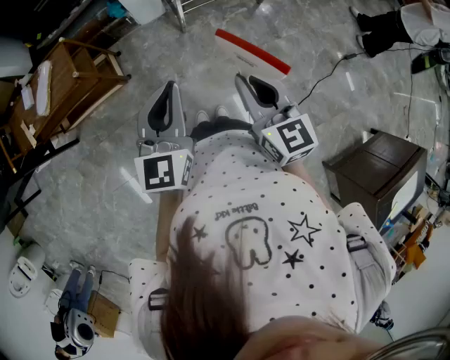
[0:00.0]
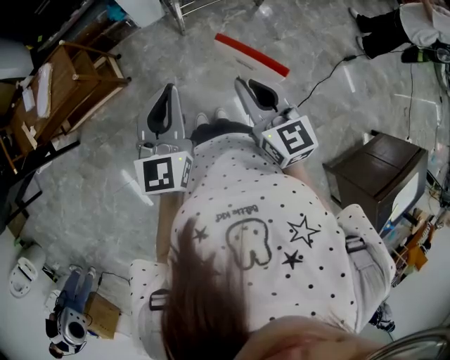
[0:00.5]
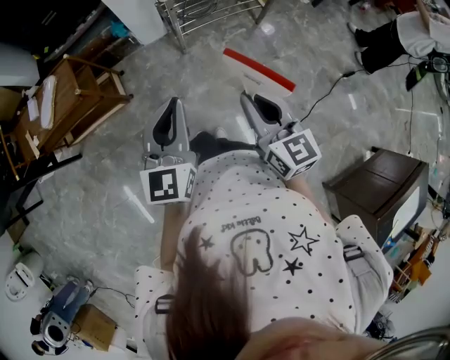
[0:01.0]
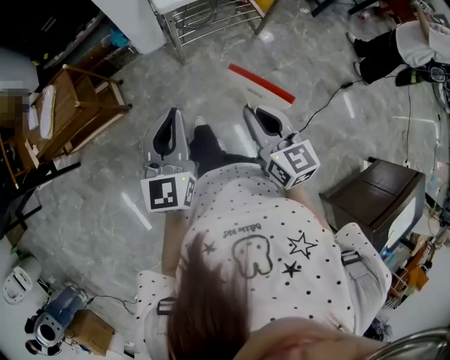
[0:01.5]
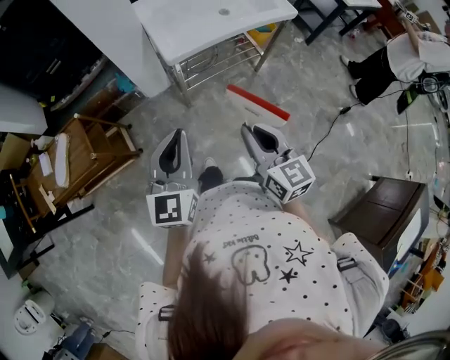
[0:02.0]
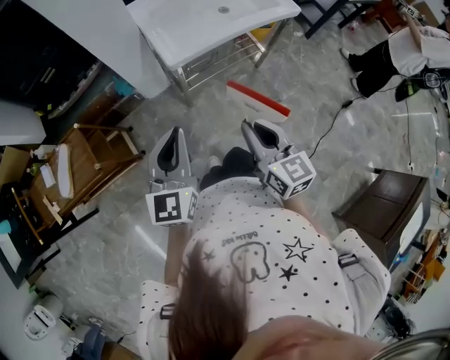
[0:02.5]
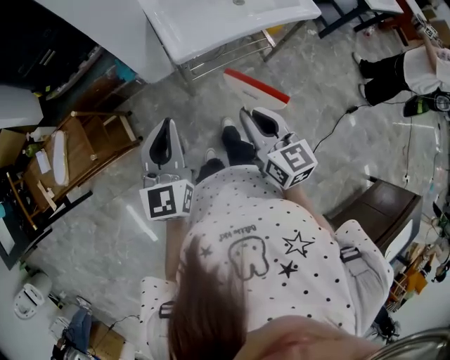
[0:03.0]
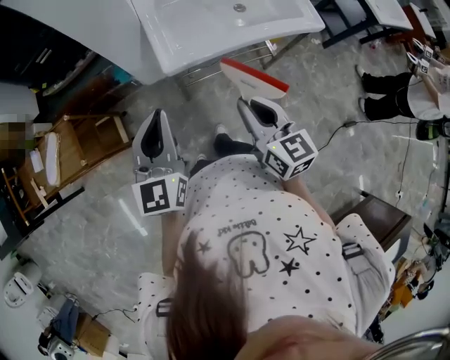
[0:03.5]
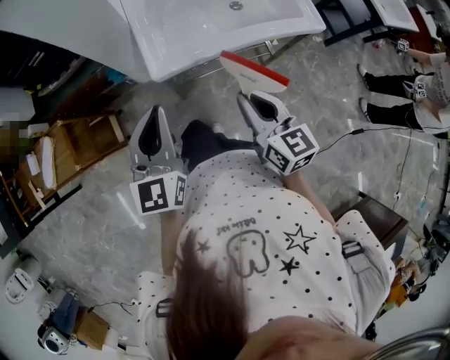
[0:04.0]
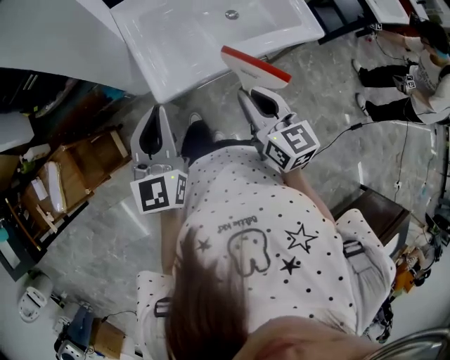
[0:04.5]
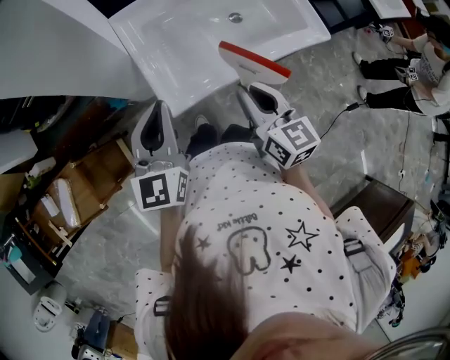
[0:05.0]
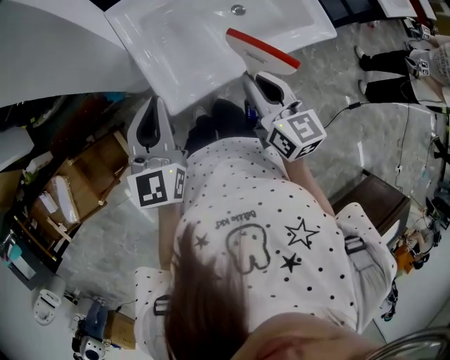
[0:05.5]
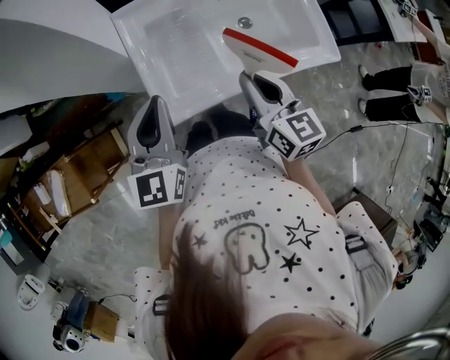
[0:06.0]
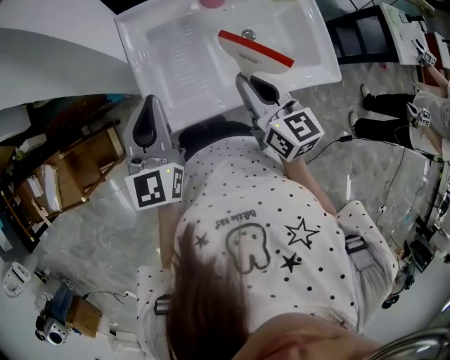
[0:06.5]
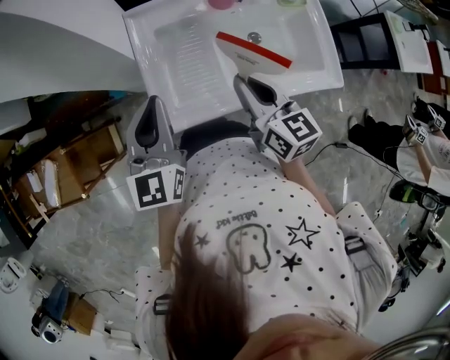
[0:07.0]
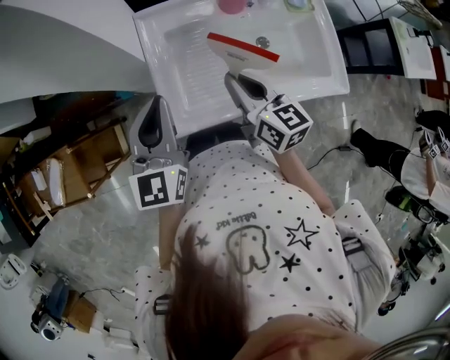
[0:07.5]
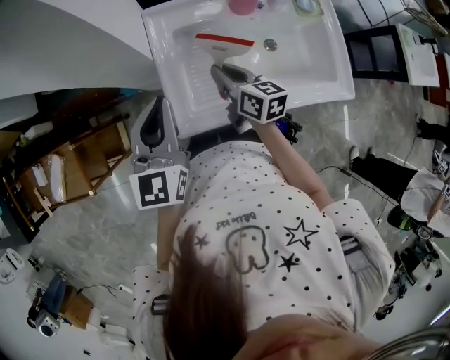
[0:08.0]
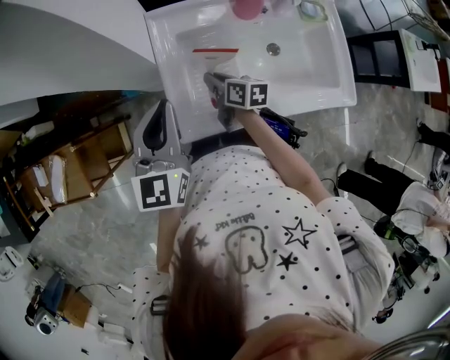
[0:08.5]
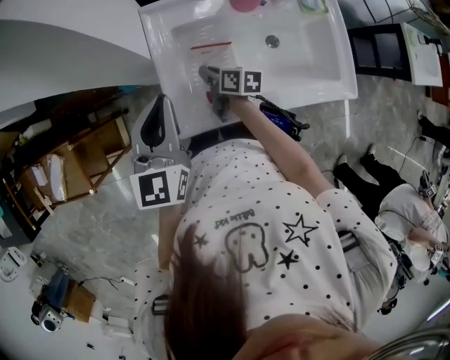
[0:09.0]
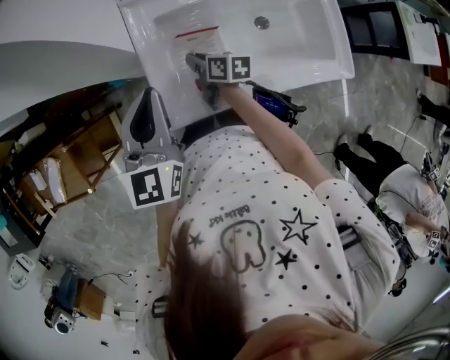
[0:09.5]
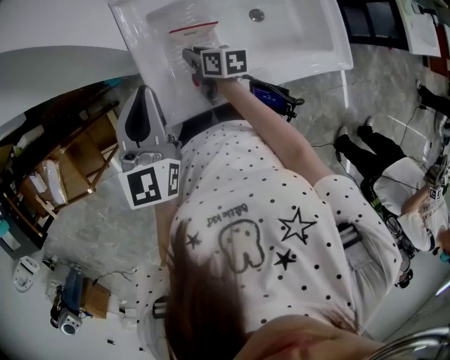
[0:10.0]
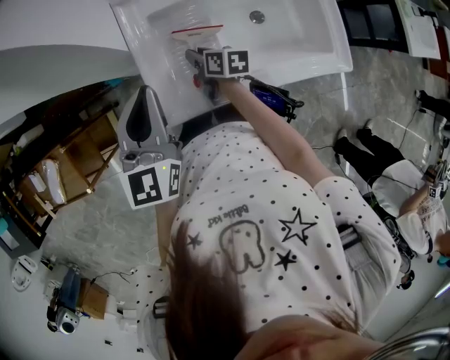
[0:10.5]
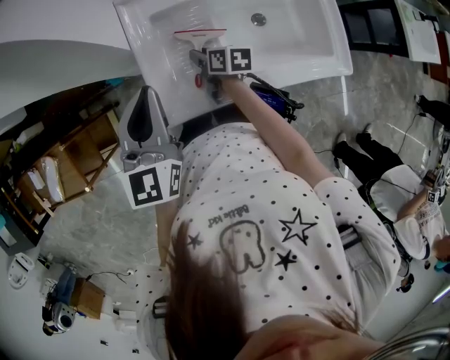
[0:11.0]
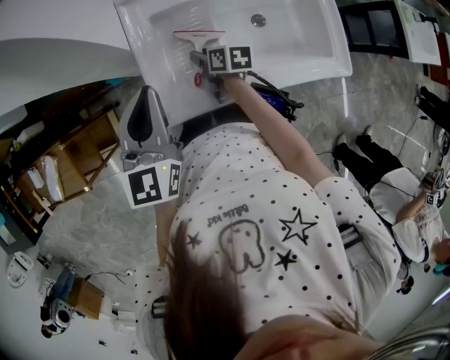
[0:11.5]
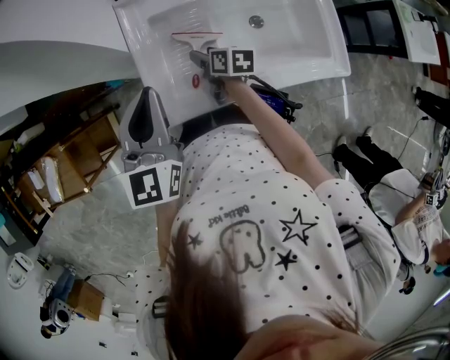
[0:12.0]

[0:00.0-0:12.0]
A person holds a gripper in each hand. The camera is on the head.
0:00.0 to 0:02.0: The grippers both shift forward by approximately 15 cm.
0:02.0 to 0:04.0: Both grippers move forward, roughly 25 cm.
0:04.0 to 0:06.0: The grippers both shift forward by about 20 cm.
0:06.0 to 0:08.0: The left gripper changes place by some 5 cm. The right gripper shifts about 20 cm forward, downward and to the left, and swivels about 20 degrees.
0:08.0 to 0:10.0: The right gripper goes some 15 cm downward, and rotates approximately 20 degrees.
0:10.0 to 0:12.0: The right gripper opens its fingers.

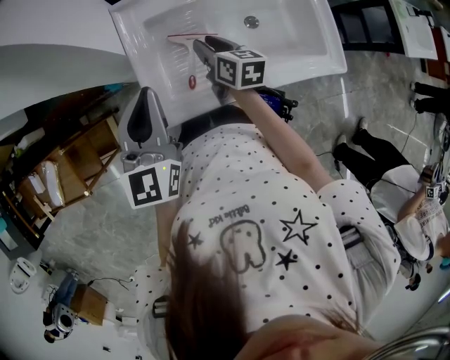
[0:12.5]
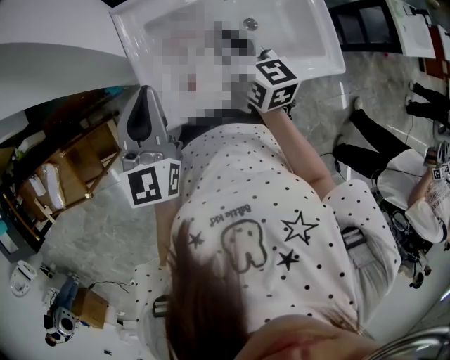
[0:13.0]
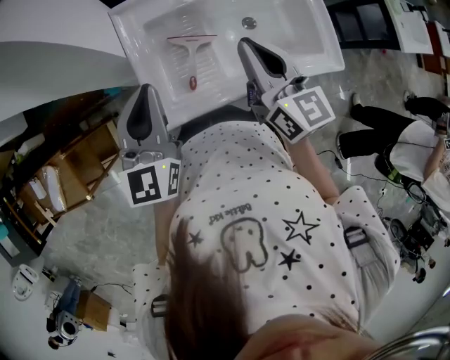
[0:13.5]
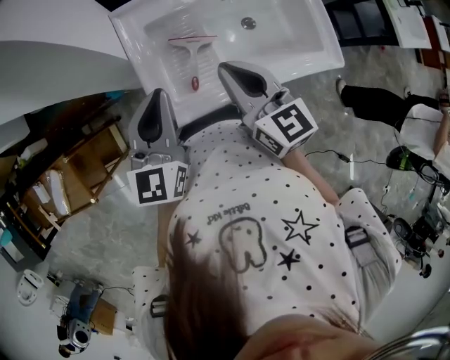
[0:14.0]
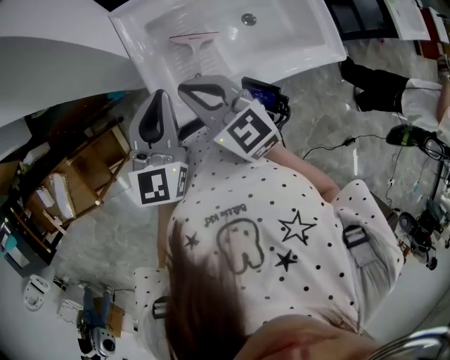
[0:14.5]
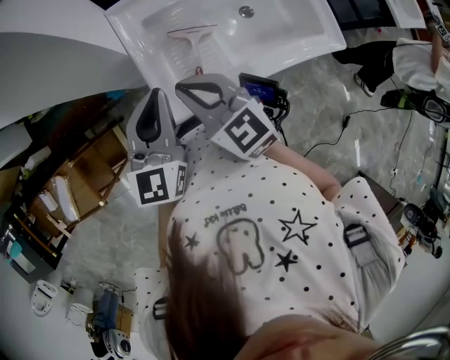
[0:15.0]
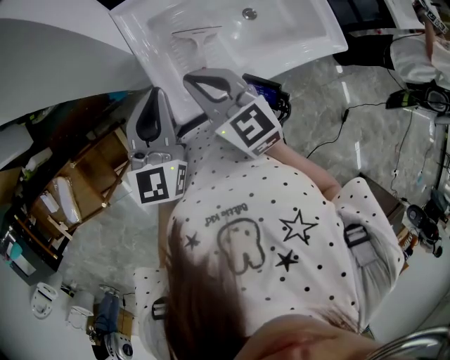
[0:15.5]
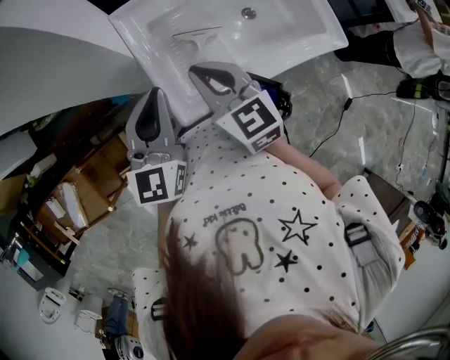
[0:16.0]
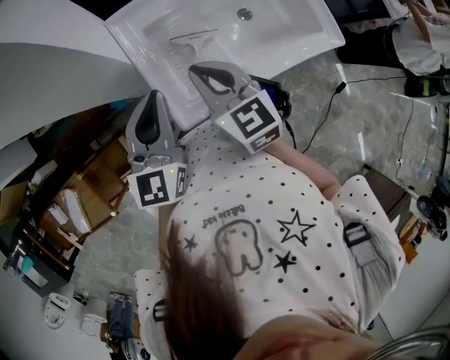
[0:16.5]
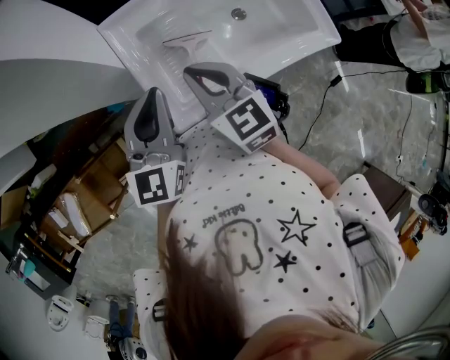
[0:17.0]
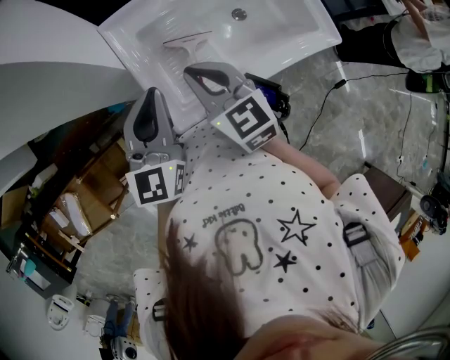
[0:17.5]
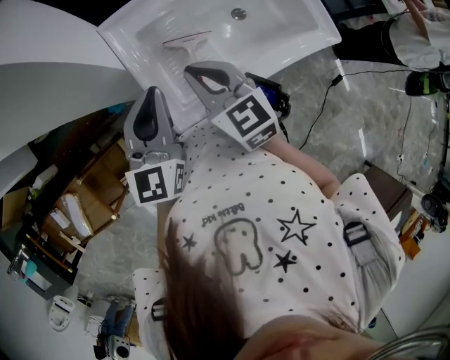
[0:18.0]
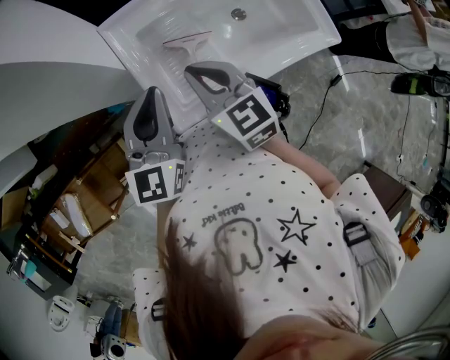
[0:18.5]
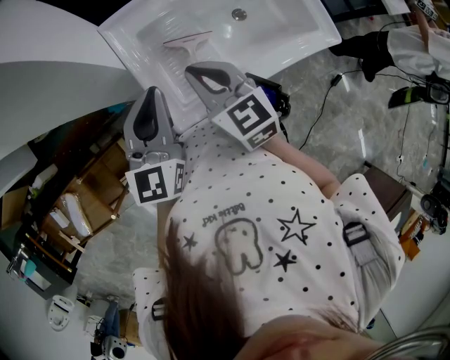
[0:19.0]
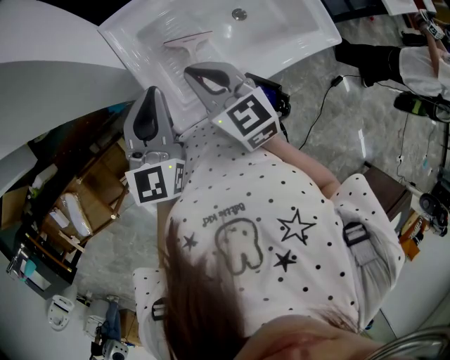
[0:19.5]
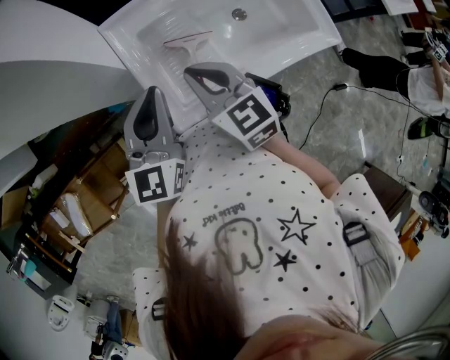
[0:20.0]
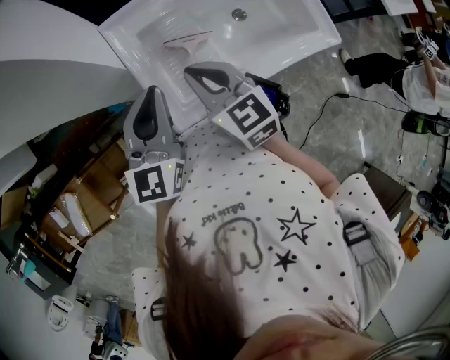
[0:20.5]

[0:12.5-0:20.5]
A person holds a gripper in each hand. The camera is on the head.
0:12.5 to 0:14.5: The right gripper goes some 20 cm upward, to the left and backward, turns by approximately 40 degrees, and closes up.
0:16.5 to 0:18.5: The grippers stay close to where they were, moving slightly.
0:18.5 to 0:20.5: Both grippers stay about where they are.

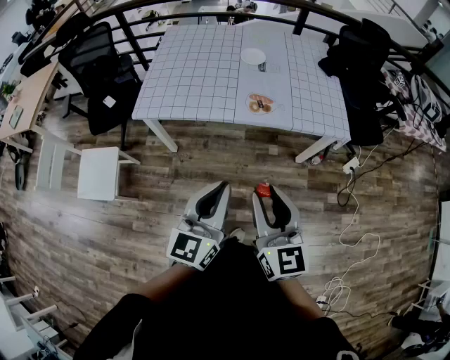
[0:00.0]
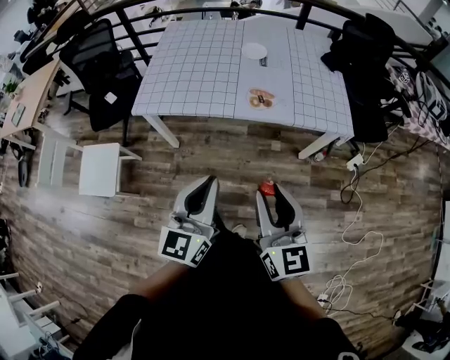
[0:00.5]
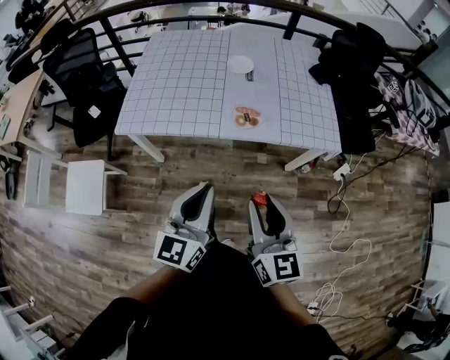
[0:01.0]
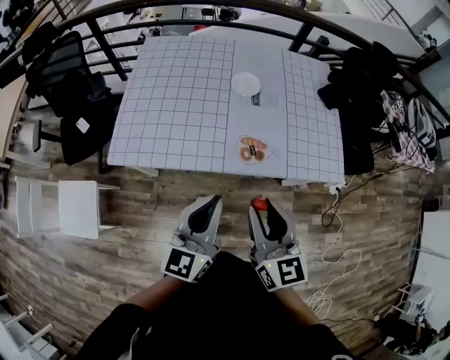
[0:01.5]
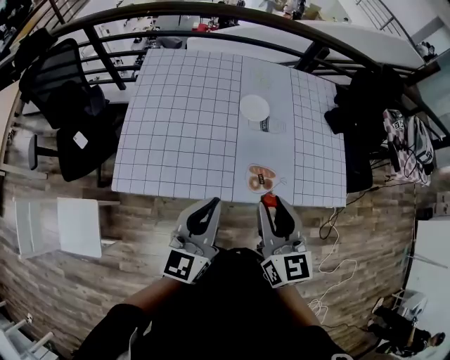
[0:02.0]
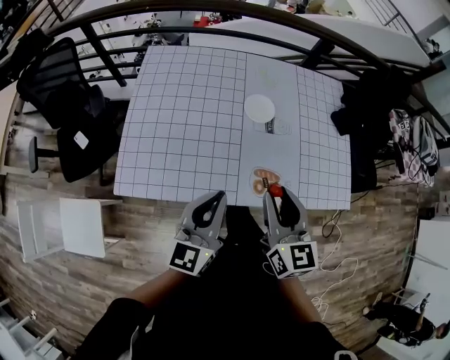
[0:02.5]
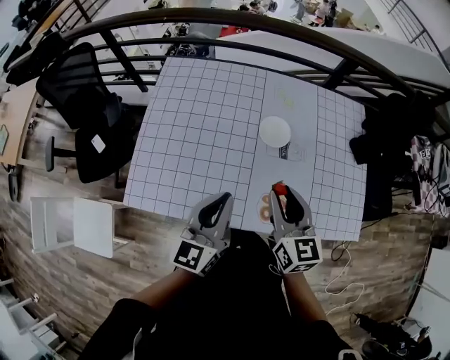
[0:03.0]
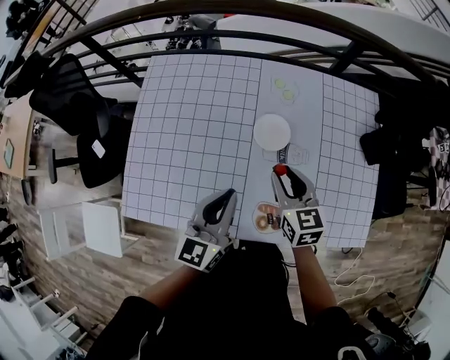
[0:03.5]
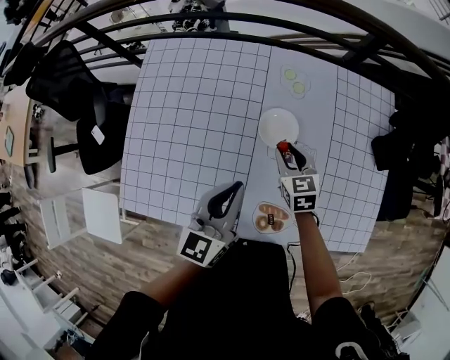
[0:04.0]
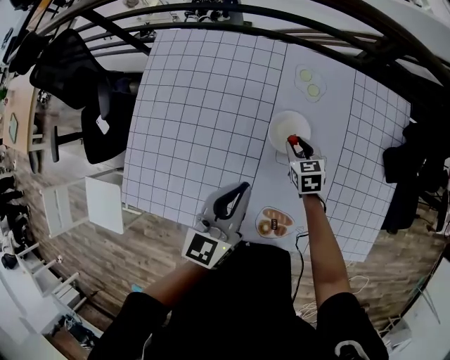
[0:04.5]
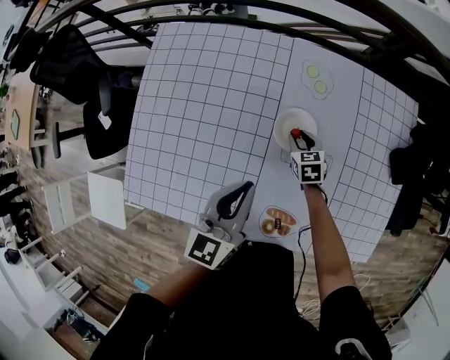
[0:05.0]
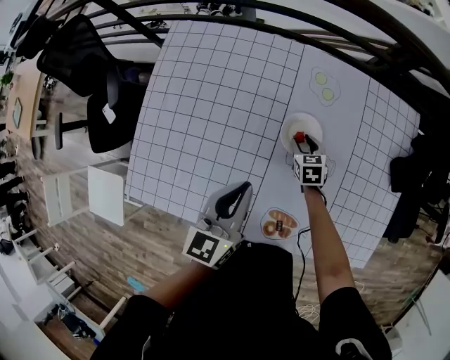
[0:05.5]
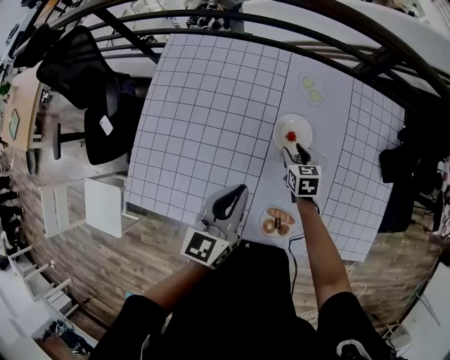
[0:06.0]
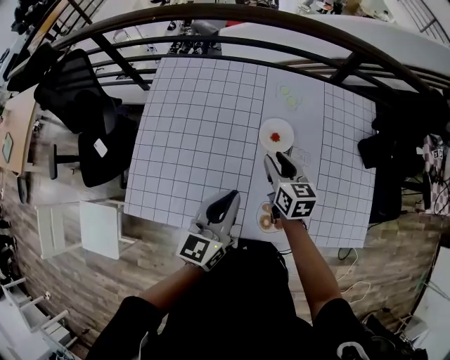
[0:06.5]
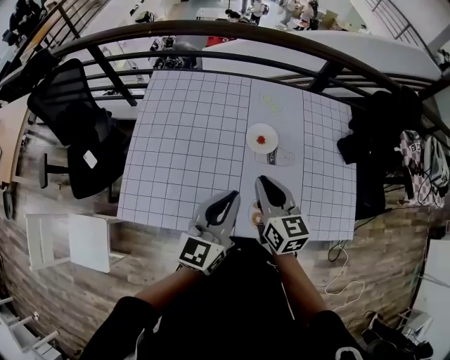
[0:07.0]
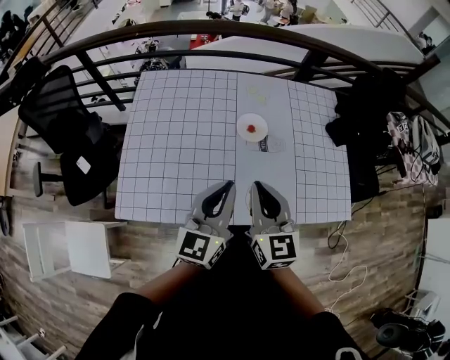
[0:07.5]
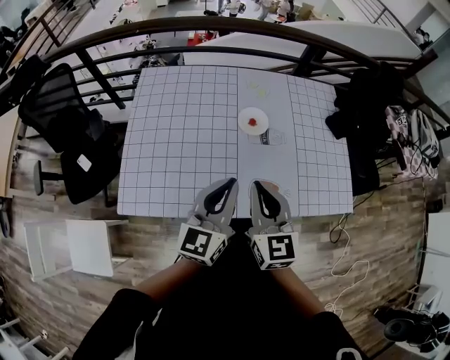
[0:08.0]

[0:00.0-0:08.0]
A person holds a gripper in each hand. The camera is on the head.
0:00.0 to 0:02.0: The grippers both shift forward by about 35 cm.
0:02.0 to 0:04.0: The left gripper travels forward by roughly 25 cm. Meanwhile the right gripper heads forward and downward, covering about 40 cm, and rotates about 30 degrees.
0:04.0 to 0:06.0: The right gripper travels downward by roughly 10 cm.
0:06.0 to 0:08.0: The left gripper moves backward and upward, some 20 cm. Meanwhile the right gripper shifts roughly 40 cm upward and backward, points its fingers approximately 30 degrees further upward, and closes its fingers.
